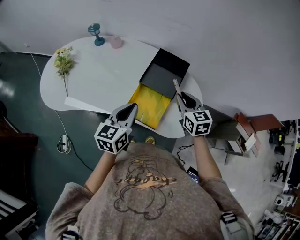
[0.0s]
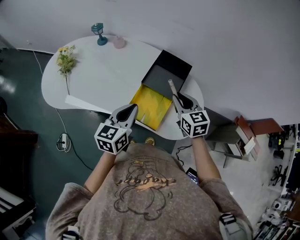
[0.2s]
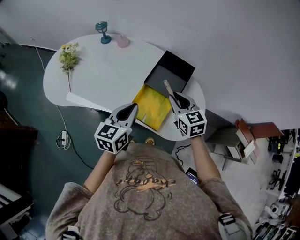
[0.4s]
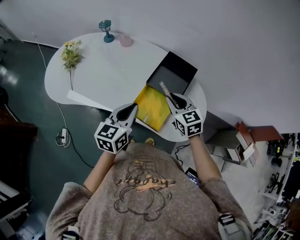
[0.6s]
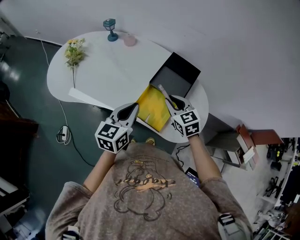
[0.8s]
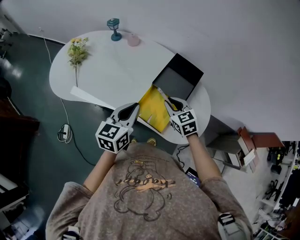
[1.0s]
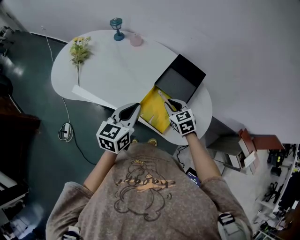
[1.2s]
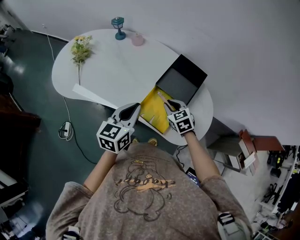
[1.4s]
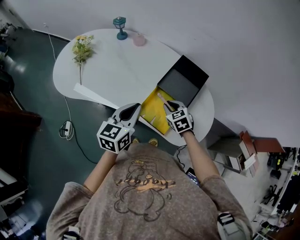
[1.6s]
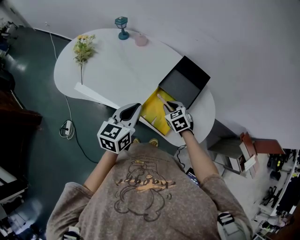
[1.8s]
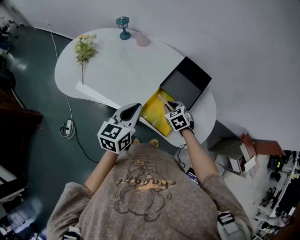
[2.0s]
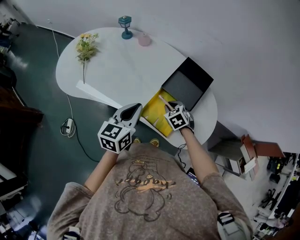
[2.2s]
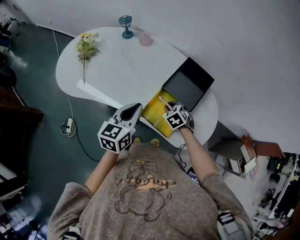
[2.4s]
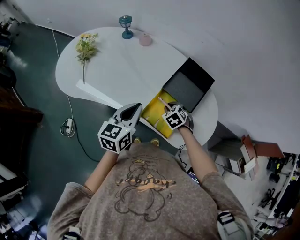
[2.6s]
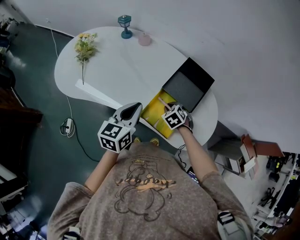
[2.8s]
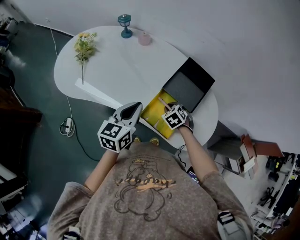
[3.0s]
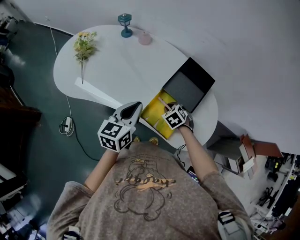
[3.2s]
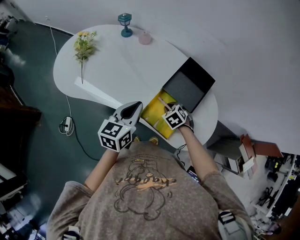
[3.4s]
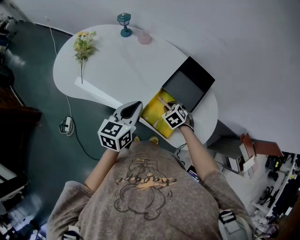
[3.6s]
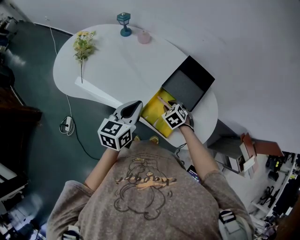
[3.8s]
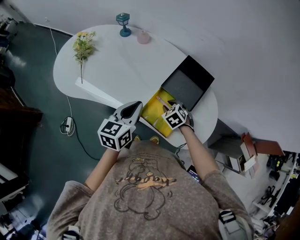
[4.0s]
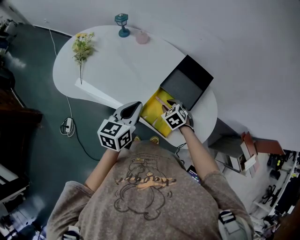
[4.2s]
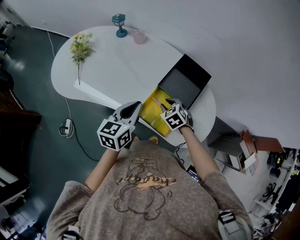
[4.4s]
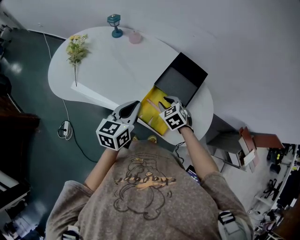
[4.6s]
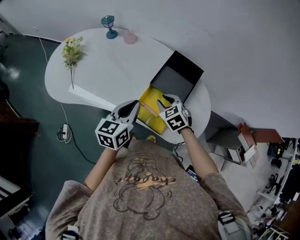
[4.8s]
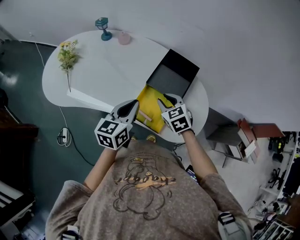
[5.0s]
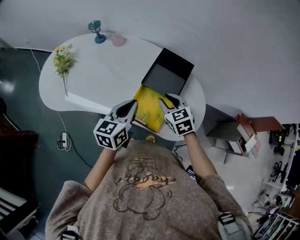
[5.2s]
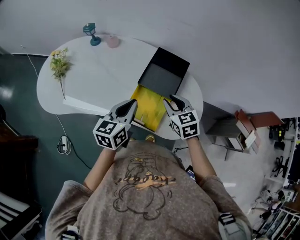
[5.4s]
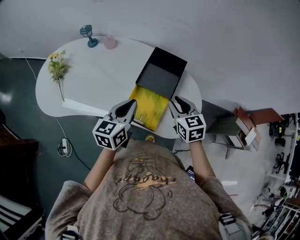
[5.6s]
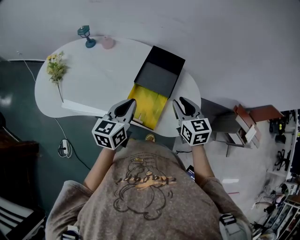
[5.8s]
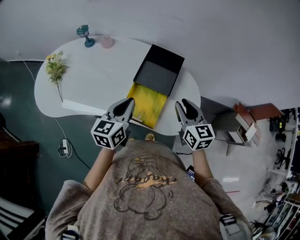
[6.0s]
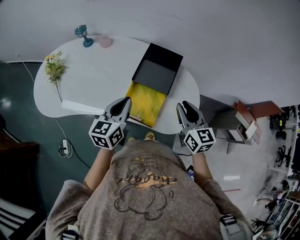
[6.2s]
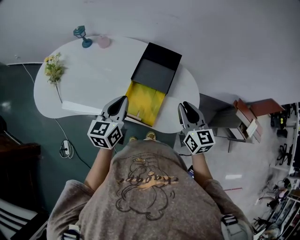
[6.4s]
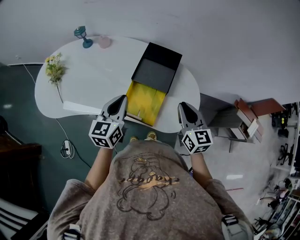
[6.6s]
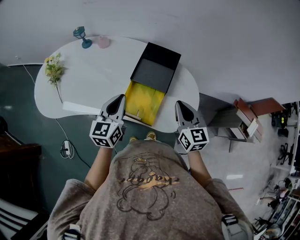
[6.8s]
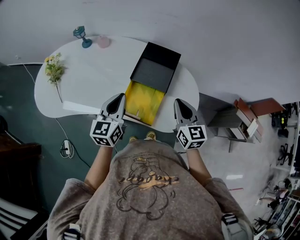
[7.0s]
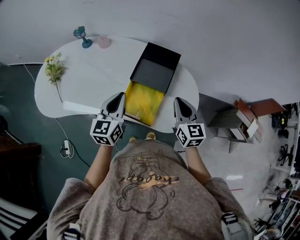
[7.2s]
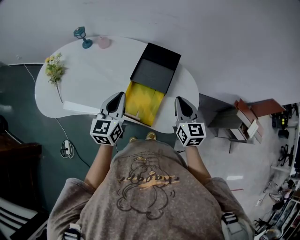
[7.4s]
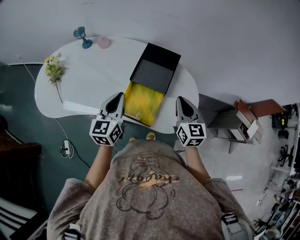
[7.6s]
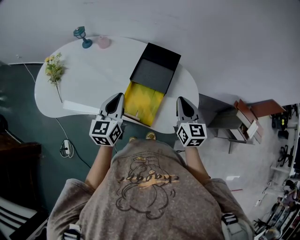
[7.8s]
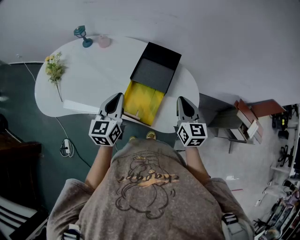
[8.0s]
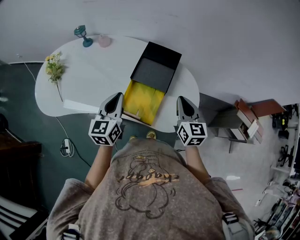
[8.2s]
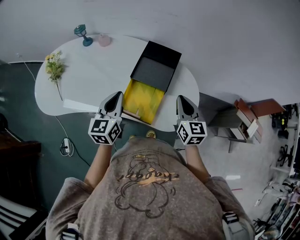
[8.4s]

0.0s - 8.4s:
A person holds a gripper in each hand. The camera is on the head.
0.0s - 1.4s: The right gripper heads to the left and downward, covering some 15 cm, and rotates roughly 30 degrees, while the left gripper goes roughly 5 cm to the left.
1.4s - 2.8s: The right gripper is displaced downward by about 5 cm, and rotates about 20 degrees.
2.8s - 4.2s: Both grippers stay put.
4.2s - 5.6s: The left gripper shifts approximately 10 cm to the right, while the right gripper goes approximately 20 cm upward and to the right, and turns by about 40 degrees.
5.6s - 7.0s: The right gripper changes place by roughly 5 cm, and closes its fingers.
7.0s - 8.4s: The grippers make only small movements.

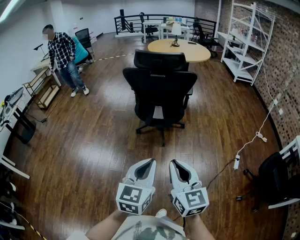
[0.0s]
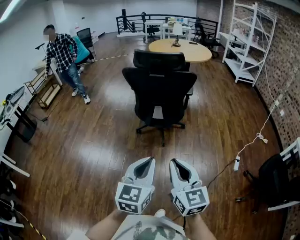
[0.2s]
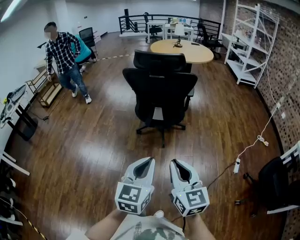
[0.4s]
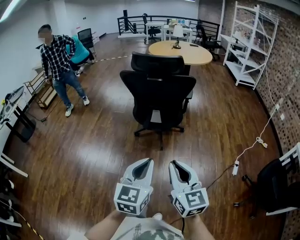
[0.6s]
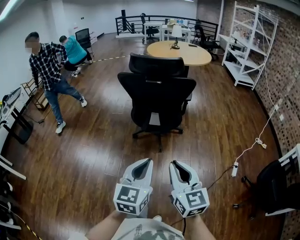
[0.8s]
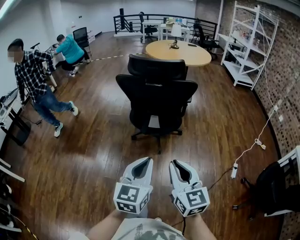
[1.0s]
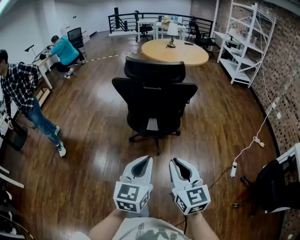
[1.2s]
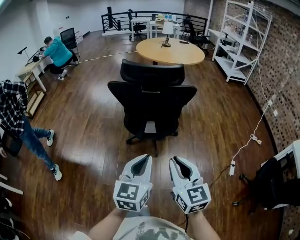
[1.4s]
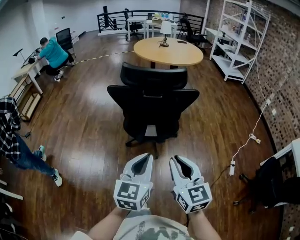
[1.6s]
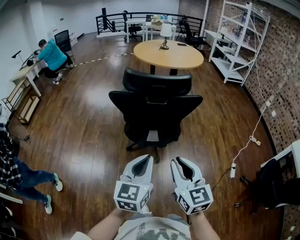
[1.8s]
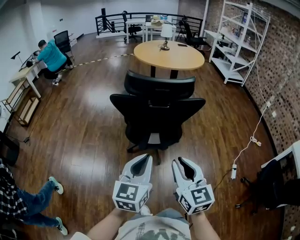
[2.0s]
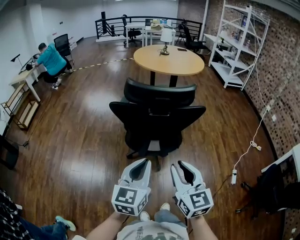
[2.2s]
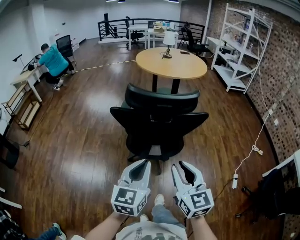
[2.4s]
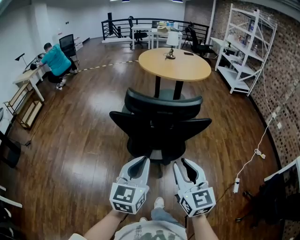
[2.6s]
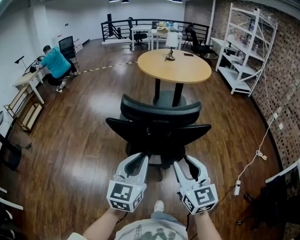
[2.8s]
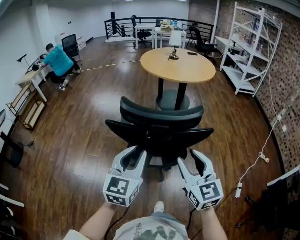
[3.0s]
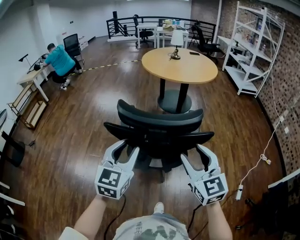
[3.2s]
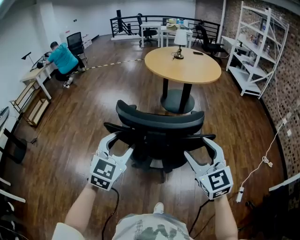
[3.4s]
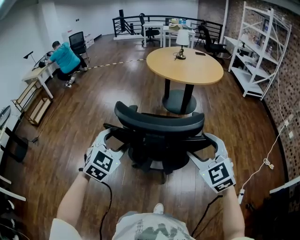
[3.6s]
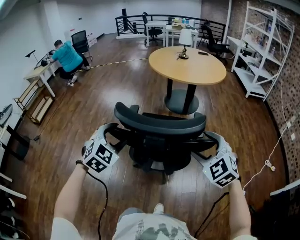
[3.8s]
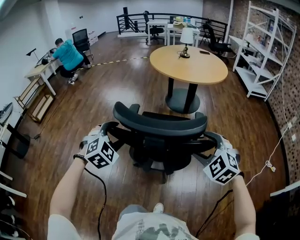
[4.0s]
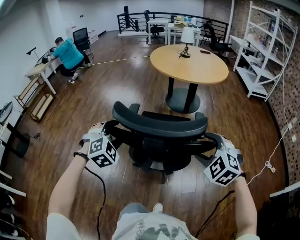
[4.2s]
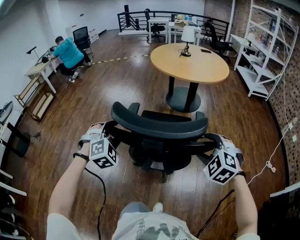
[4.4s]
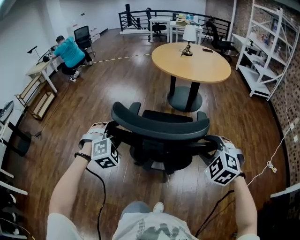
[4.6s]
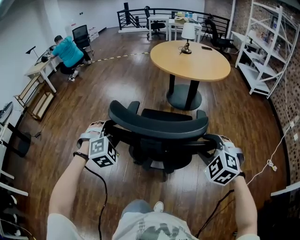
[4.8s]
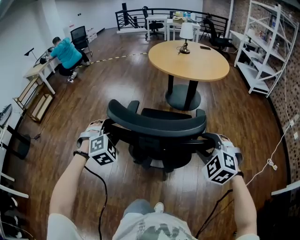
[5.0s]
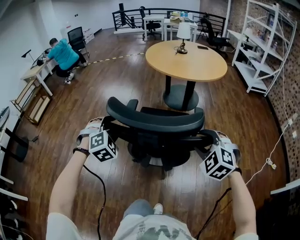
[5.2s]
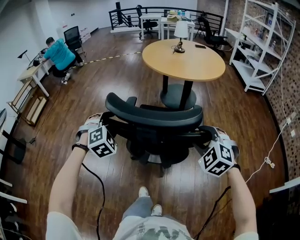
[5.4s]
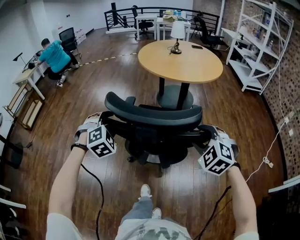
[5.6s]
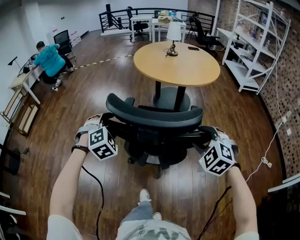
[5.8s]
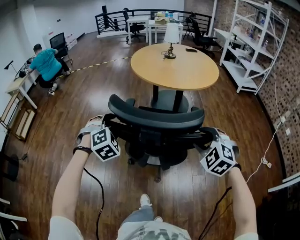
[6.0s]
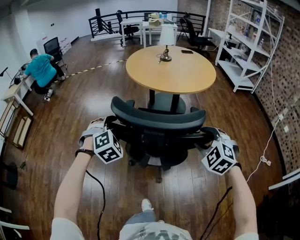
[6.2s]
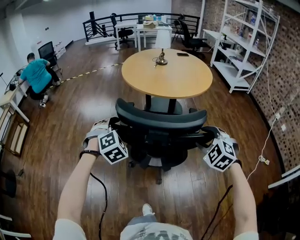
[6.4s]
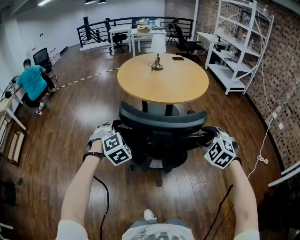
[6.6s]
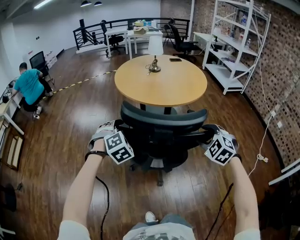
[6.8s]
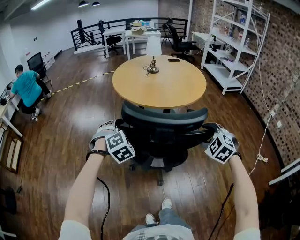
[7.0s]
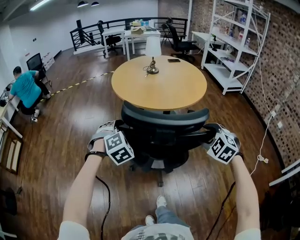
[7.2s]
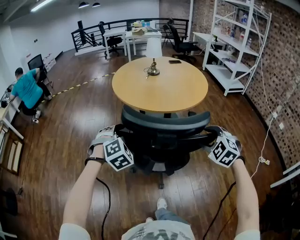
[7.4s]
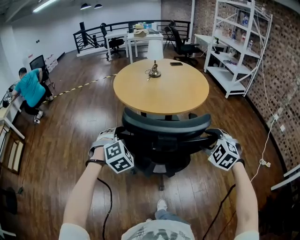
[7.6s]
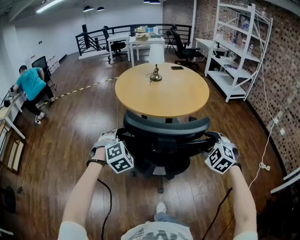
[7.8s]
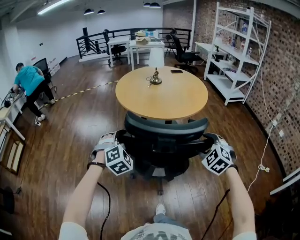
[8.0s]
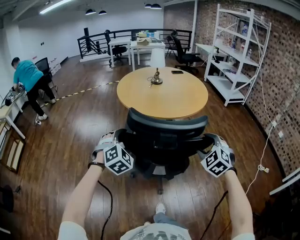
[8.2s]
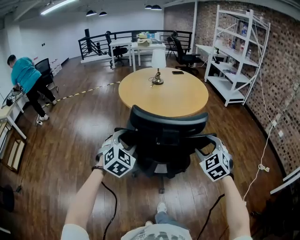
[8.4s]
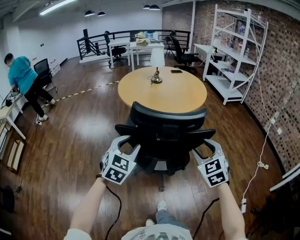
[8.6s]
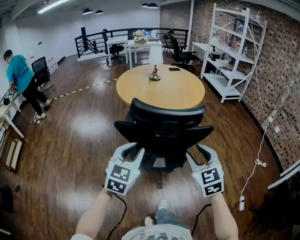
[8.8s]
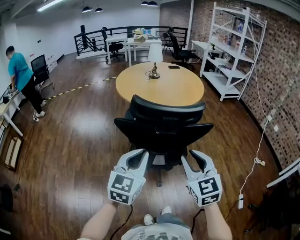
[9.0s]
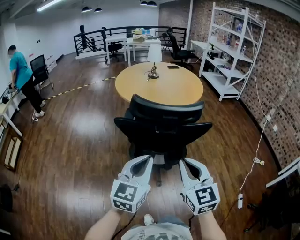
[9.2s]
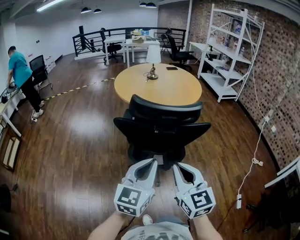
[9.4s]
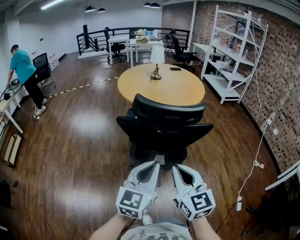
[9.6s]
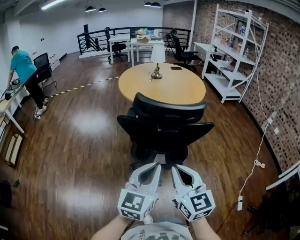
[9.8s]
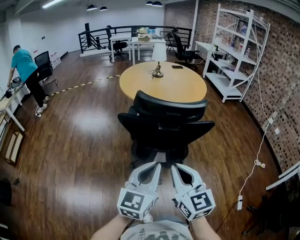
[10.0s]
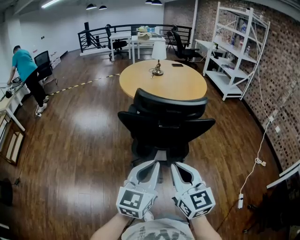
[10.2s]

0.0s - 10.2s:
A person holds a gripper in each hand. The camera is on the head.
0.0s - 1.4s: The grippers both shift forward by roughly 20 cm.
1.4s - 3.0s: The two grippers go some 25 cm forward. The right gripper opens its fingers.
3.0s - 4.4s: The left gripper goes about 20 cm forward, downward and to the left, rolls clockwise, seen from behind, by some 60 degrees, and opens; the right gripper shifts some 15 cm forward, to the right and downward, points its fingers roughly 40 degrees further downward, and opens up.
4.4s - 5.8s: Both grippers move forward, roughly 20 cm.
5.8s - 7.2s: The right gripper moves forward and to the right, about 20 cm, while the left gripper is displaced forward by roughly 20 cm.
7.2s - 8.8s: The right gripper shifts some 15 cm backward, to the left and upward, and turns by roughly 40 degrees. The left gripper heads backward and upward, covering about 20 cm, swivels some 50 degrees, and closes up.
8.8s - 10.2s: The right gripper is displaced backward and to the left by approximately 15 cm, changes its angle by some 30 degrees, and closes up. Meanwhile the left gripper goes some 10 cm backward and to the right, swivels about 20 degrees, and closes up.

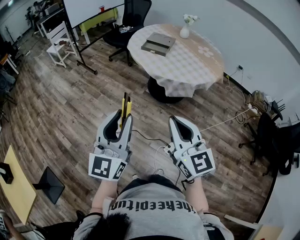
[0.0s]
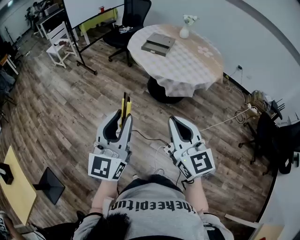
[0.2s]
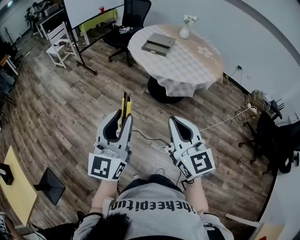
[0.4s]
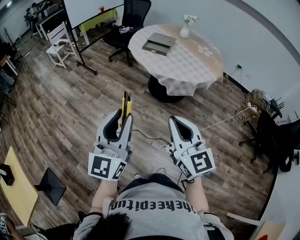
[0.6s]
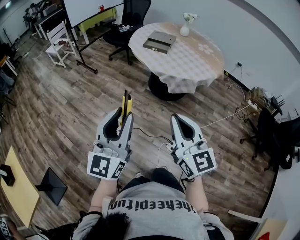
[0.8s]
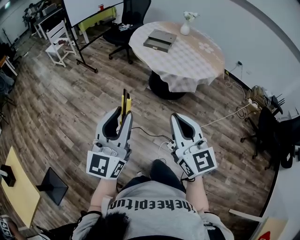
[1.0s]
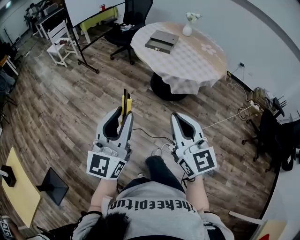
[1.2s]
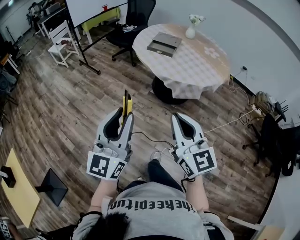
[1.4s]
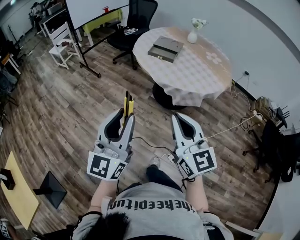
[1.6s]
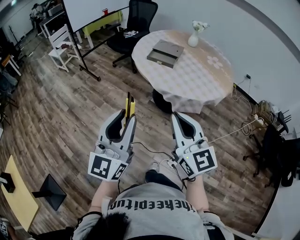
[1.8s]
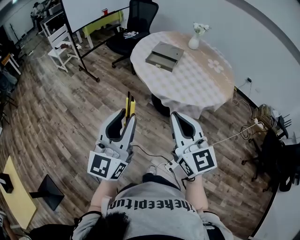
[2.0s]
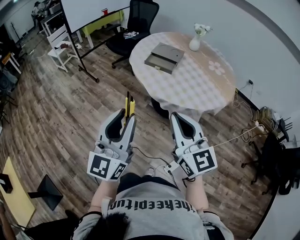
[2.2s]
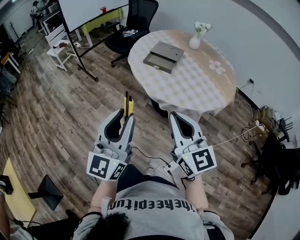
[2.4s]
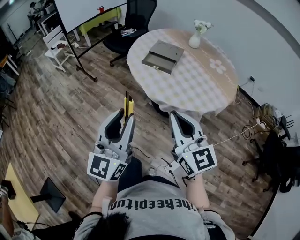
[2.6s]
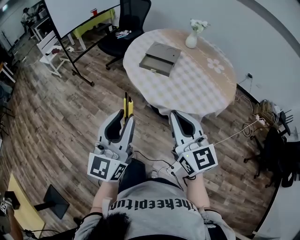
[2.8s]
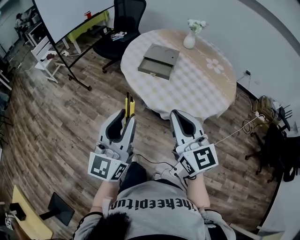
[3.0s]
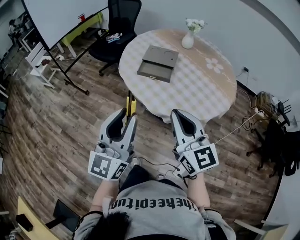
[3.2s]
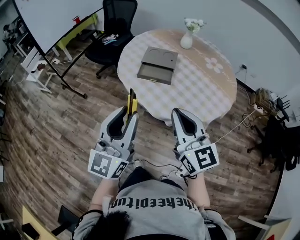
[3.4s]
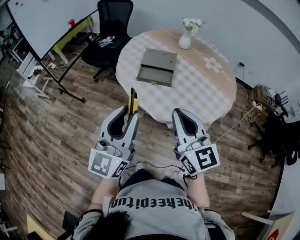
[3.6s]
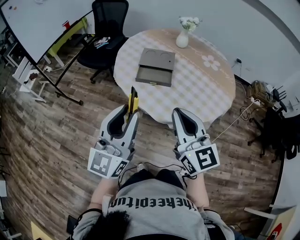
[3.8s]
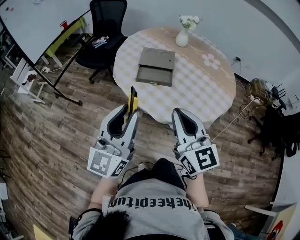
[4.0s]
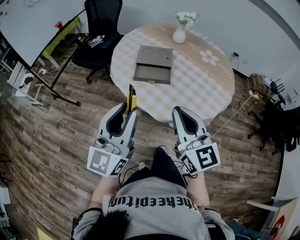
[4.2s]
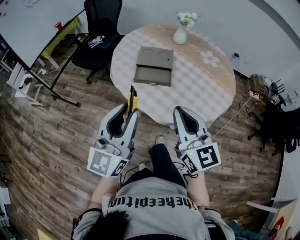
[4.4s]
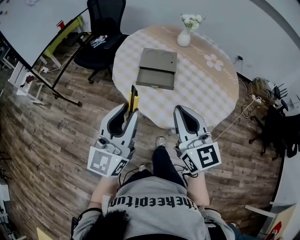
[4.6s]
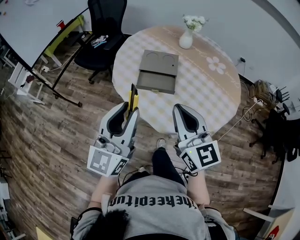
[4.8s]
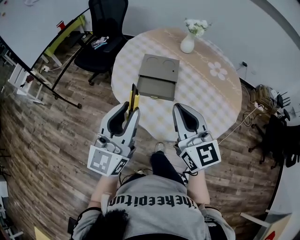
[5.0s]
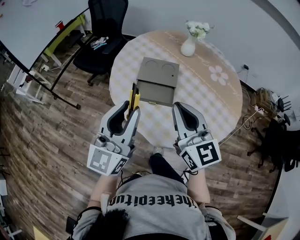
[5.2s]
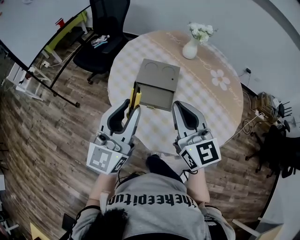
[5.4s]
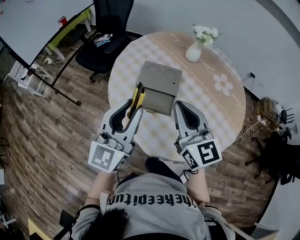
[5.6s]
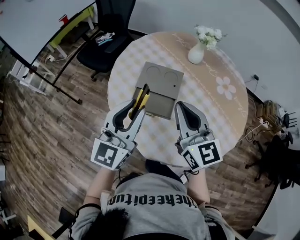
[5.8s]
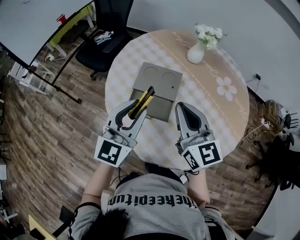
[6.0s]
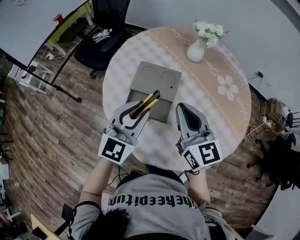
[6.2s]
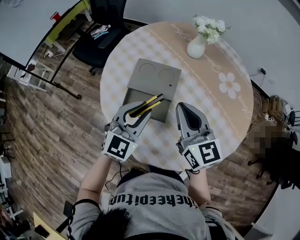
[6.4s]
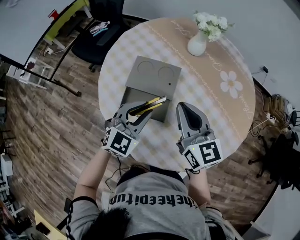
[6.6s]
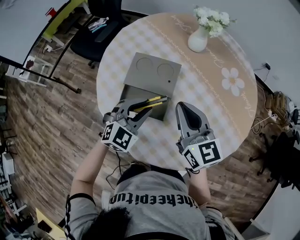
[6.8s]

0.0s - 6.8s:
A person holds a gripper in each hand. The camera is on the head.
0.0s - 1.4s: The right gripper changes place by roughly 5 cm.
1.4s - 2.8s: The two grippers go some 25 cm forward.
2.8s - 4.0s: The grippers both shift forward and to the left by some 20 cm.
4.0s - 5.4s: Both grippers move forward, about 20 cm.
5.4s - 6.8s: The right gripper is displaced forward, downward and to the right by approximately 20 cm. Meanwhile the left gripper moves downward, forward and to the right, approximately 30 cm, and tips its fingers downward by roughly 40 degrees.
